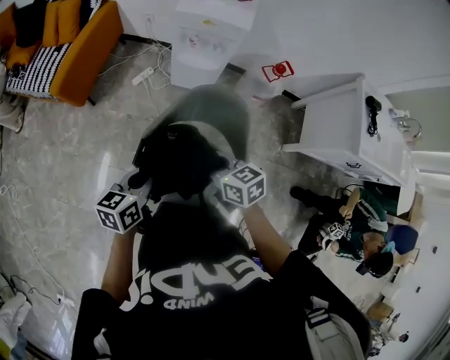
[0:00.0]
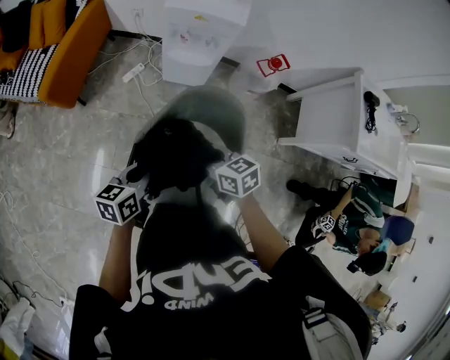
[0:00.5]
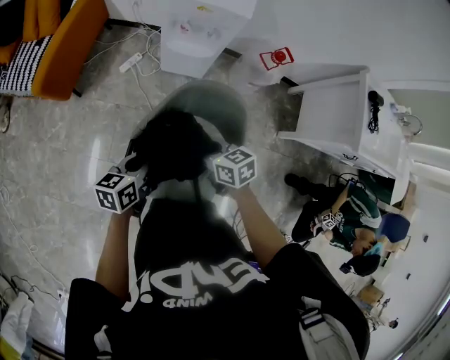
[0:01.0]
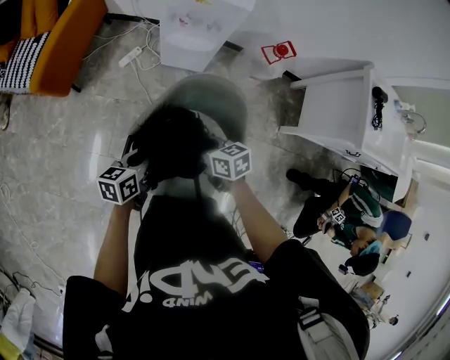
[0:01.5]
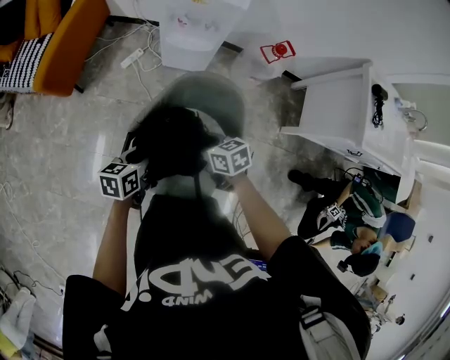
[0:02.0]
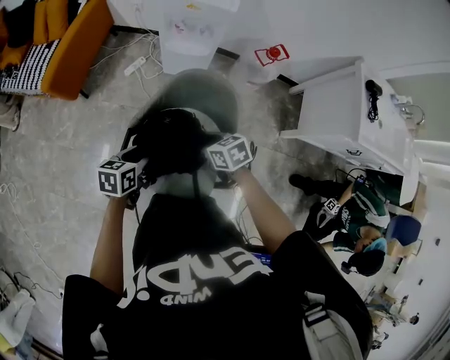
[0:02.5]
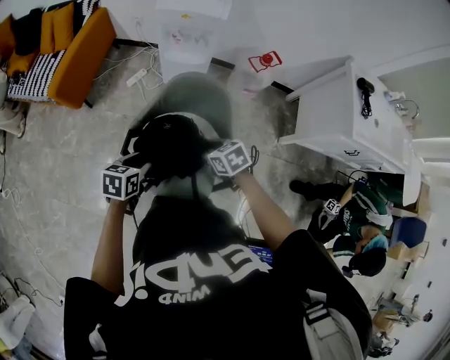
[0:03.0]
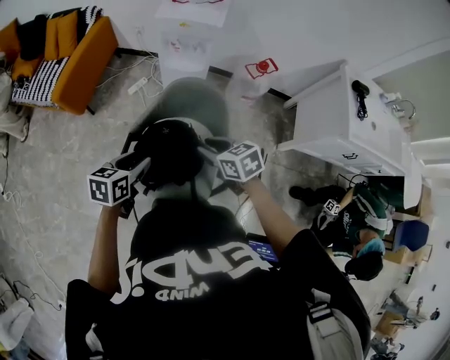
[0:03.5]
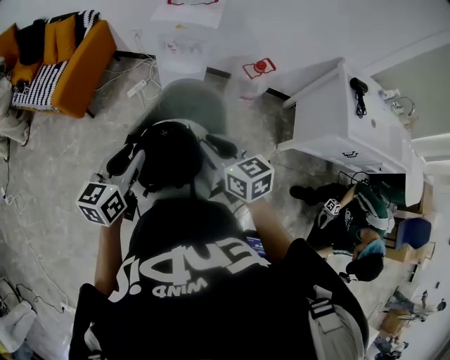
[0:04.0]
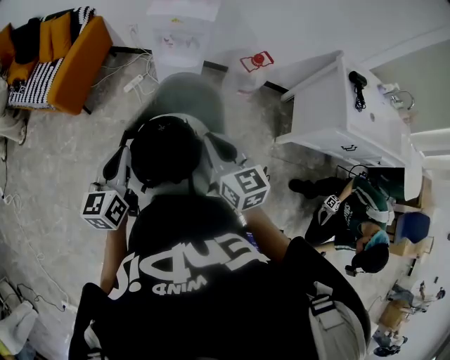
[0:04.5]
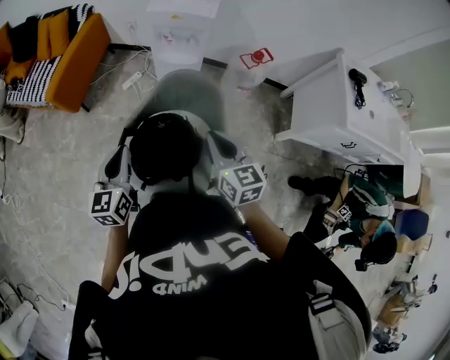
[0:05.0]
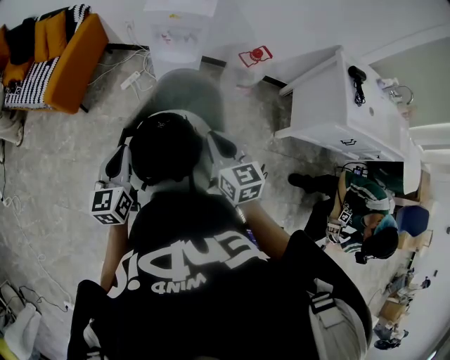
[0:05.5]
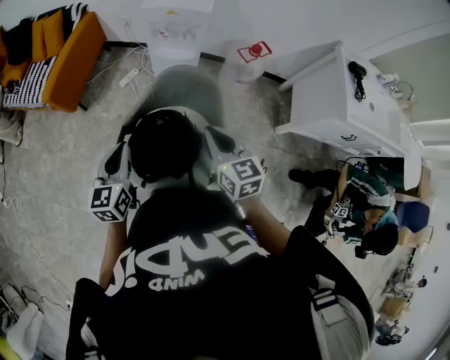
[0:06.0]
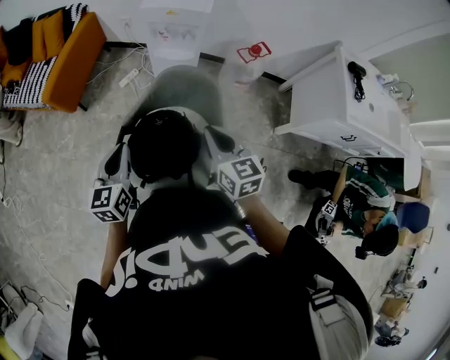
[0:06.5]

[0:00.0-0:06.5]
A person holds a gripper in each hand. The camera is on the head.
0:00.0 to 0:02.0: The grippers both shift downward and forward by approximately 15 cm.
0:02.0 to 0:04.5: The two grippers go roughly 25 cm upward and backward. The left gripper changes its angle by some 40 degrees, and closes. The right gripper swivels about 40 degrees.
0:04.5 to 0:06.5: The grippers stay close to where they were, moving slightly.

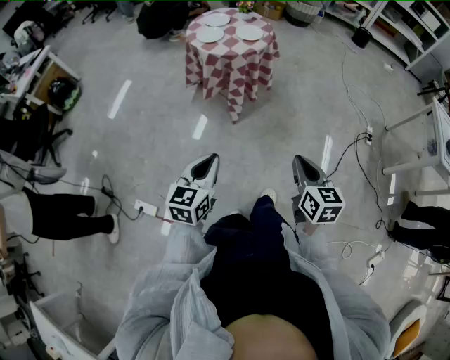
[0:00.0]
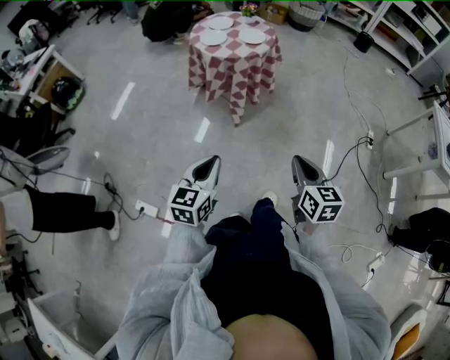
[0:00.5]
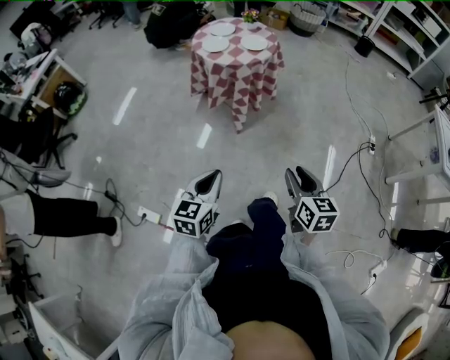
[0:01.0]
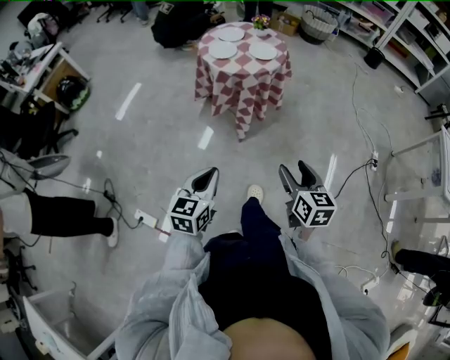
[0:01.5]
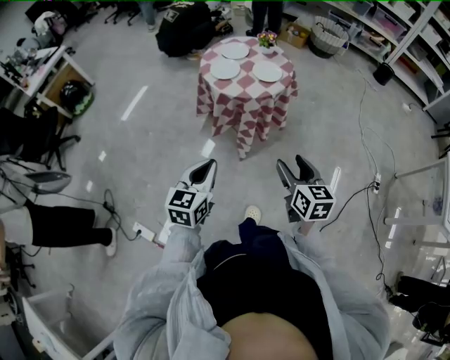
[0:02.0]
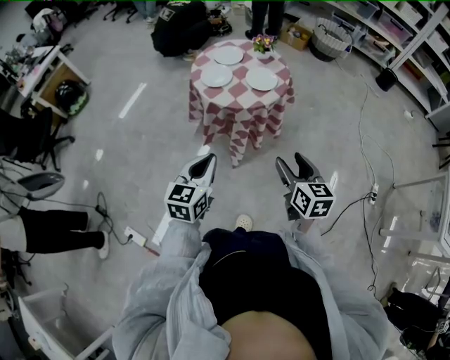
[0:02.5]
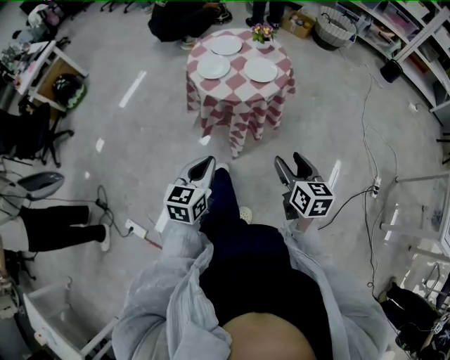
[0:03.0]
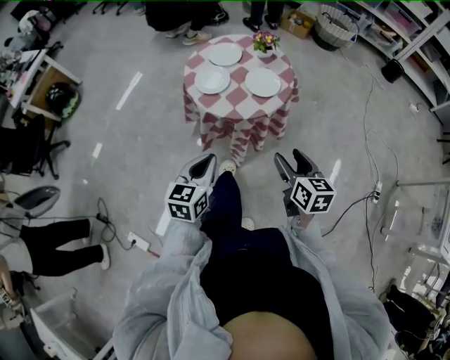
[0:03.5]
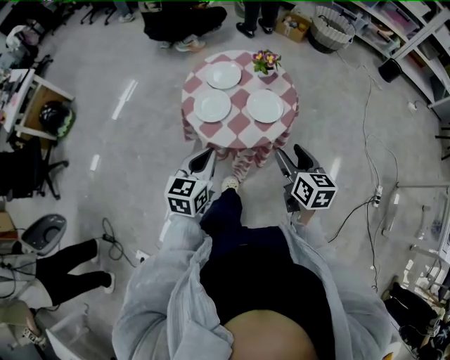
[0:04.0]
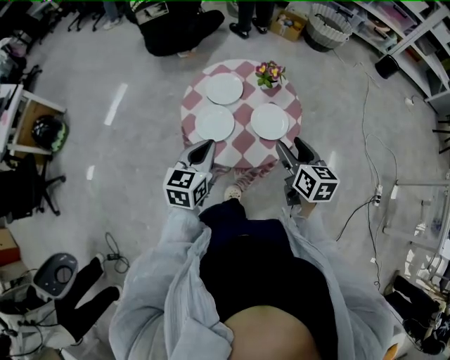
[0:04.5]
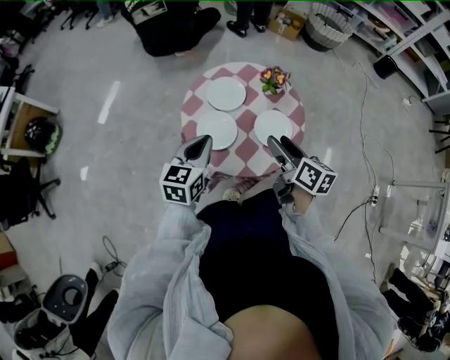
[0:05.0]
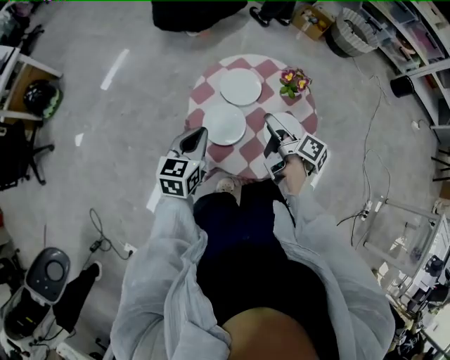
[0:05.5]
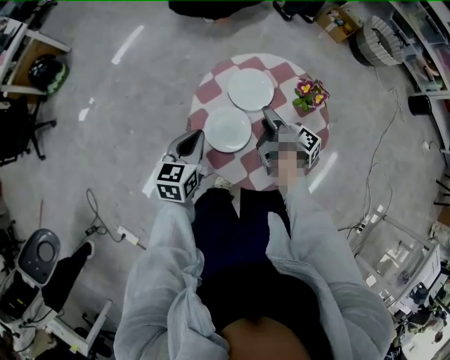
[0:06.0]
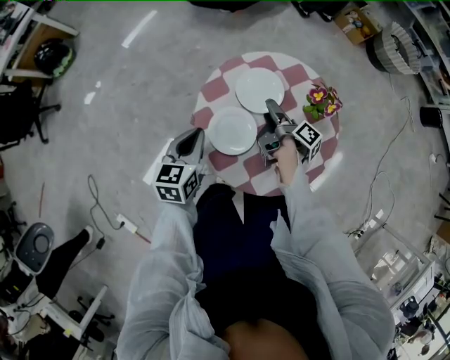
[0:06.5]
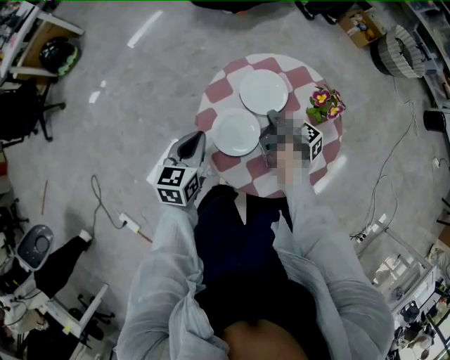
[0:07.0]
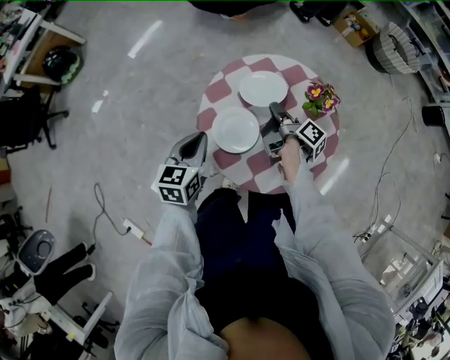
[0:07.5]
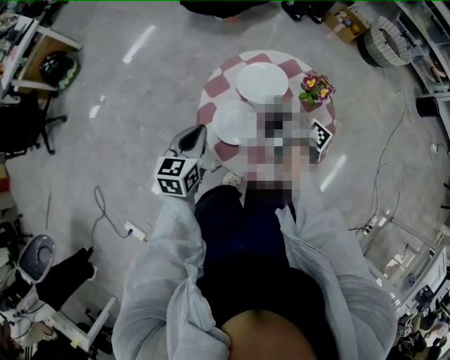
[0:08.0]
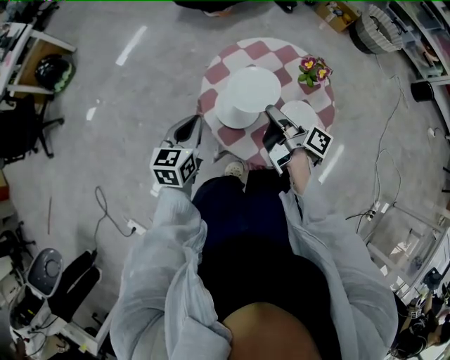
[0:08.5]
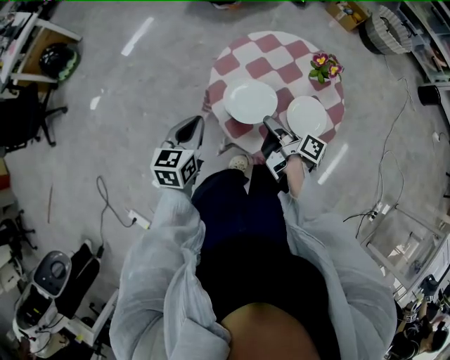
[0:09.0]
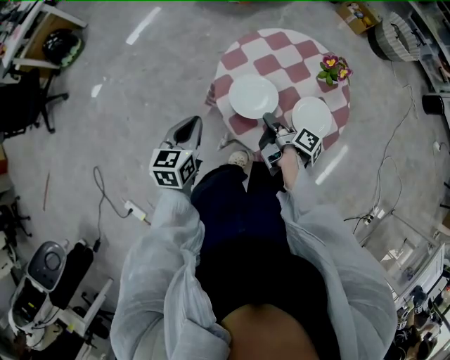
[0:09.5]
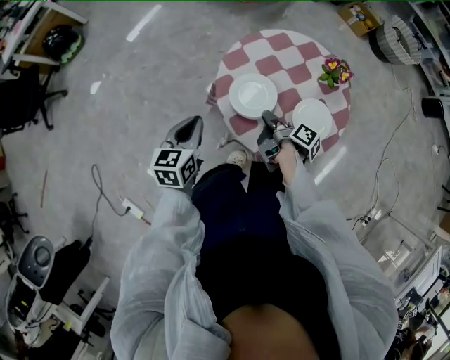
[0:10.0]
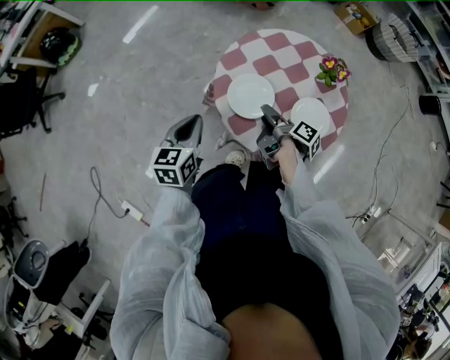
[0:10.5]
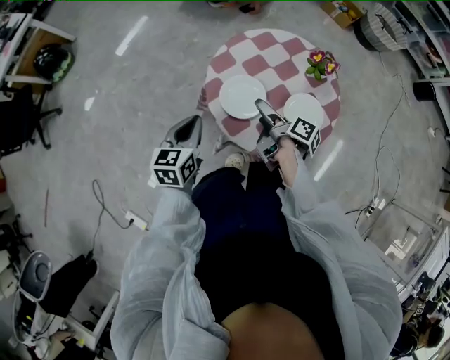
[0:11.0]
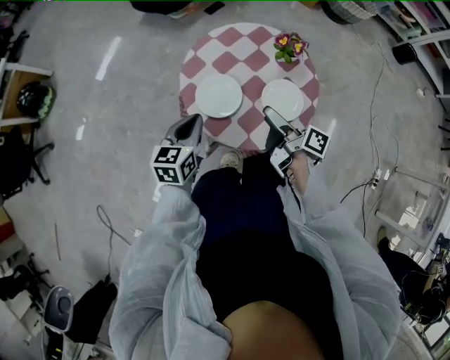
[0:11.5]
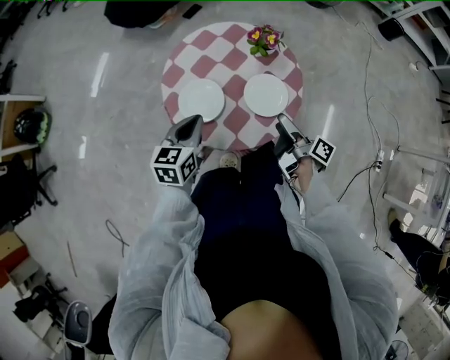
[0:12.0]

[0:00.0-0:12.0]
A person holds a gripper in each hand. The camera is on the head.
0:00.0 to 0:02.0: The left gripper shifts by some 20 cm.
0:02.0 to 0:04.0: The left gripper moves roughly 30 cm.
0:04.0 to 0:06.0: The left gripper shifts by about 25 cm.
0:08.0 to 0:10.0: The left gripper ends up approximately 10 cm from where it was.
0:10.0 to 0:12.0: The left gripper moves about 15 cm, and changes its angle by approximately 20 degrees.

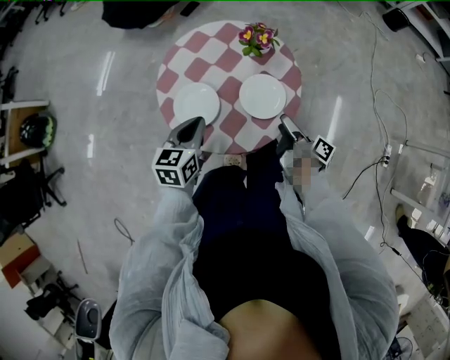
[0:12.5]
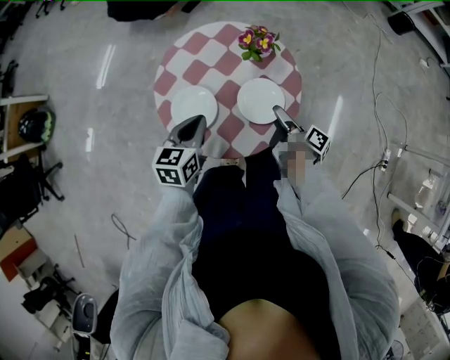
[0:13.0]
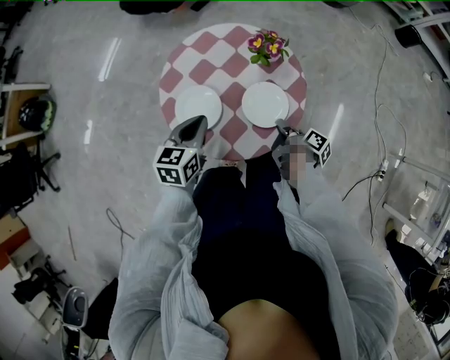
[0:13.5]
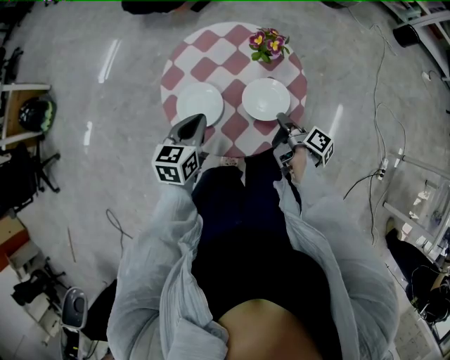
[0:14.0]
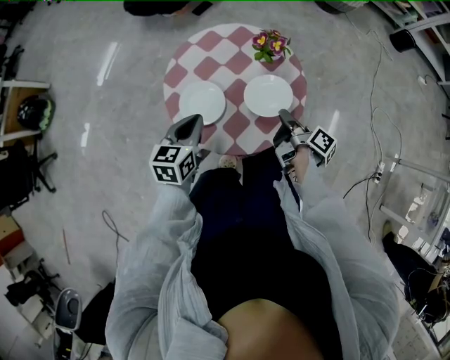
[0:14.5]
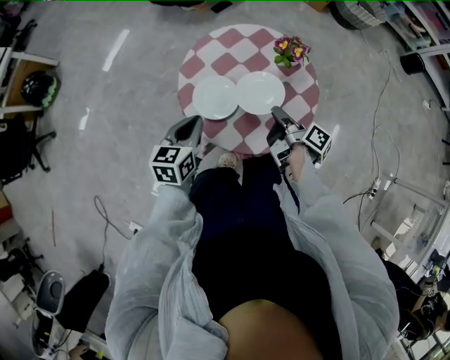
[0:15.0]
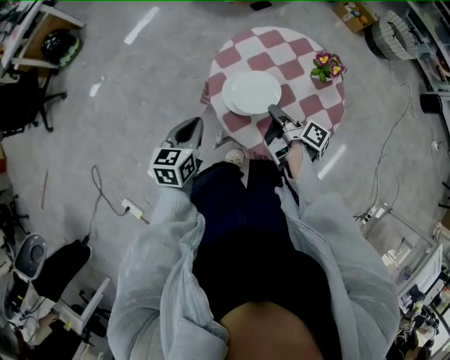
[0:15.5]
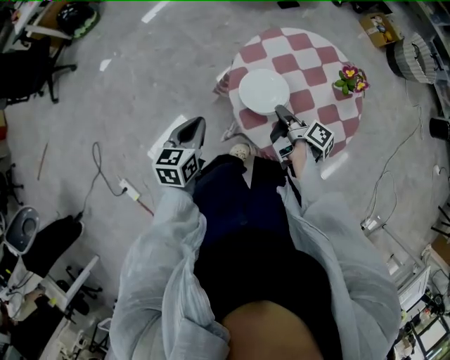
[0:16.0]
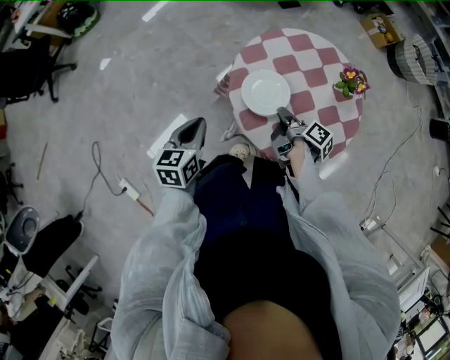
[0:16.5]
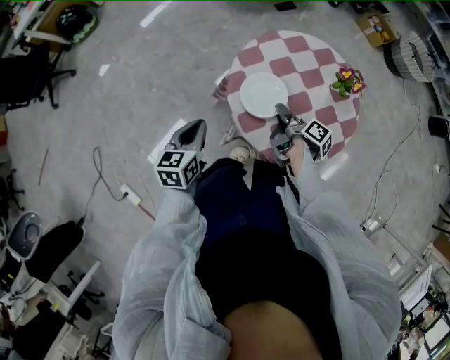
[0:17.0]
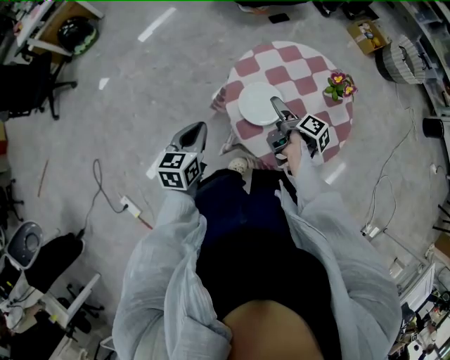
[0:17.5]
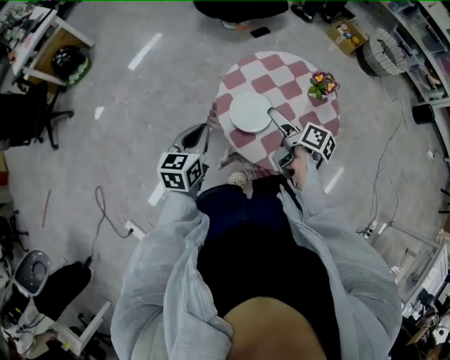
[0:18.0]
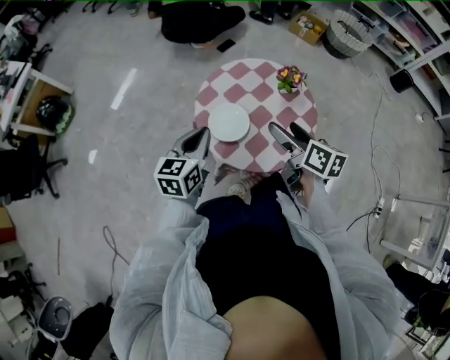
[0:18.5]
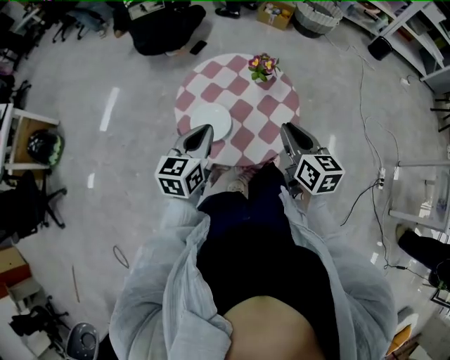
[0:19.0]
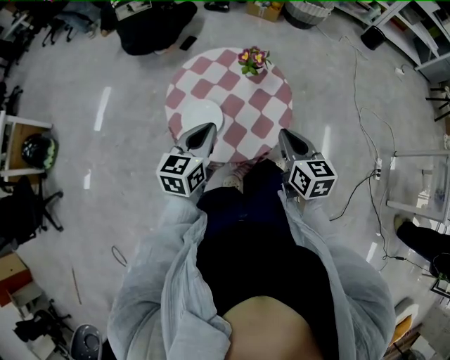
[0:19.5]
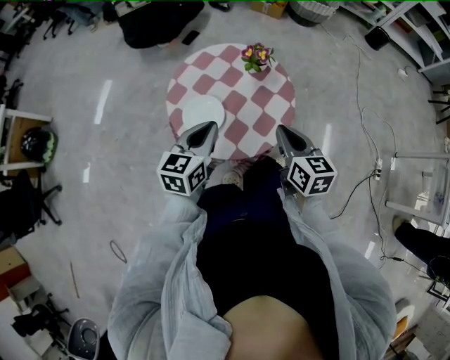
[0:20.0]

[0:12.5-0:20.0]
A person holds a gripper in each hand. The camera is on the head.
0:14.5 to 0:16.5: The left gripper shifts by some 15 cm, and changes its angle by about 30 degrees.
0:16.5 to 0:18.0: The left gripper moves upward, some 5 cm.
0:18.0 to 0:20.0: The left gripper ends up approximately 15 cm from where it was, and swivels about 30 degrees.

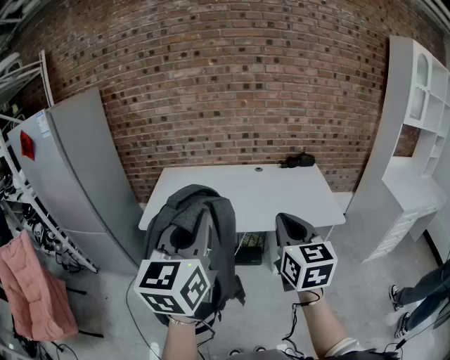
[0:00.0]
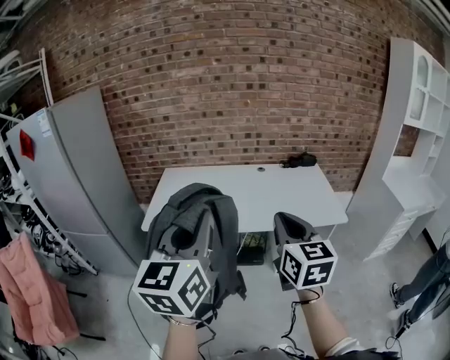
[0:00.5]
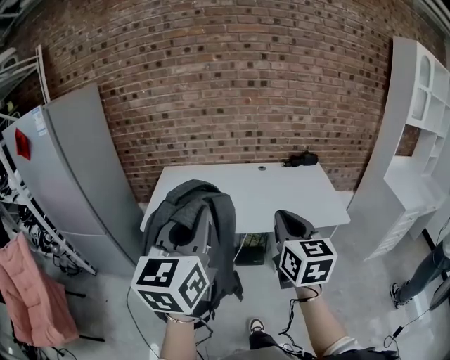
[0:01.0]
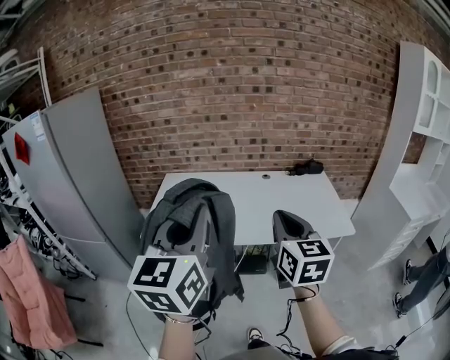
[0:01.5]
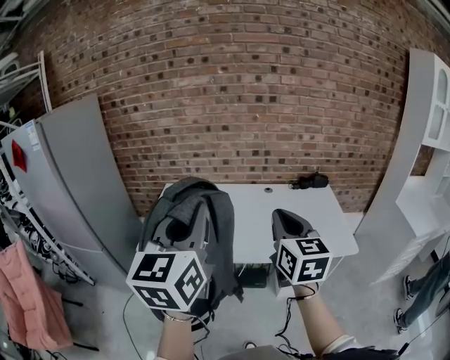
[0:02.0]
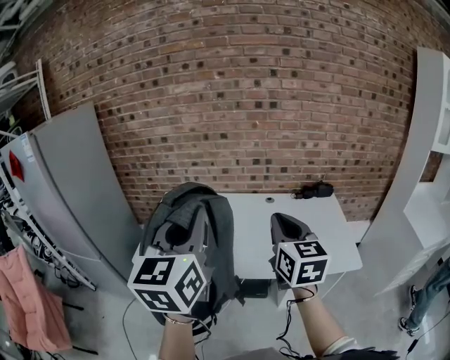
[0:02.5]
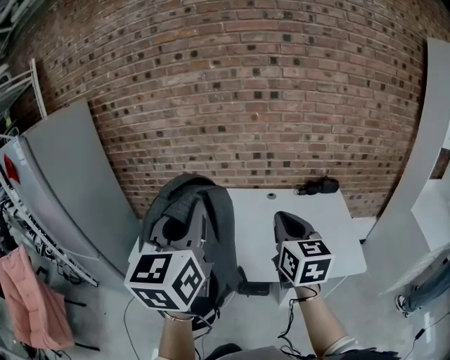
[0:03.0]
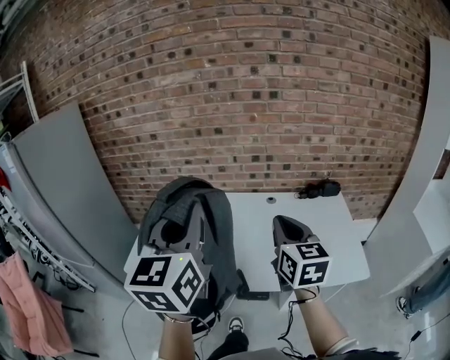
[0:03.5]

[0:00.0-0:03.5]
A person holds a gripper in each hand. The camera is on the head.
0:00.0 to 0:02.0: The grippers both shift forward by roughly 15 cm.
0:02.0 to 0:03.5: Both grippers move forward, approximately 15 cm.
